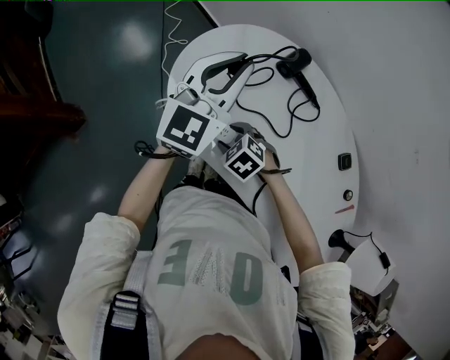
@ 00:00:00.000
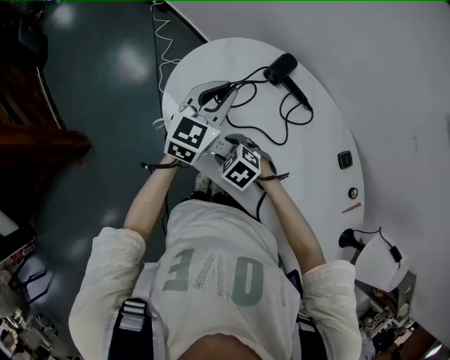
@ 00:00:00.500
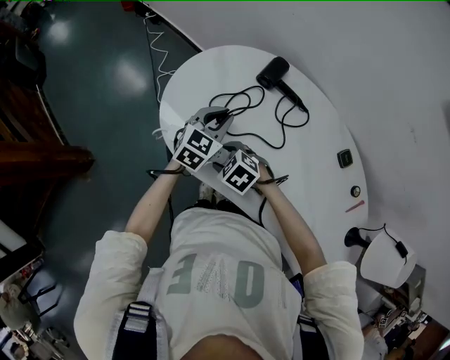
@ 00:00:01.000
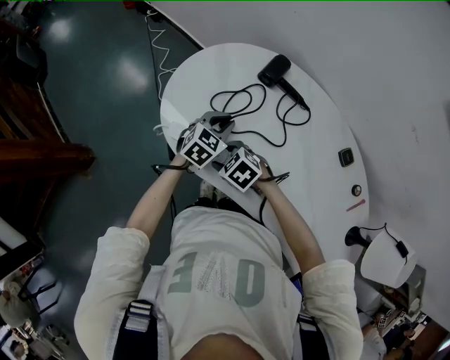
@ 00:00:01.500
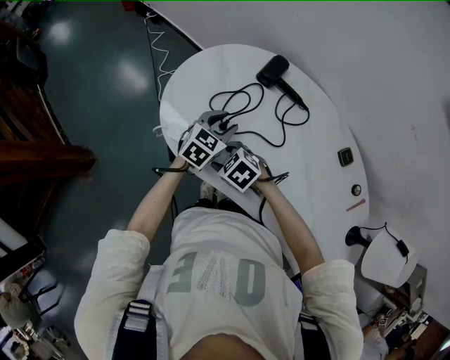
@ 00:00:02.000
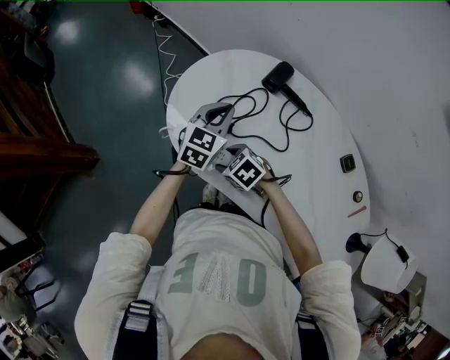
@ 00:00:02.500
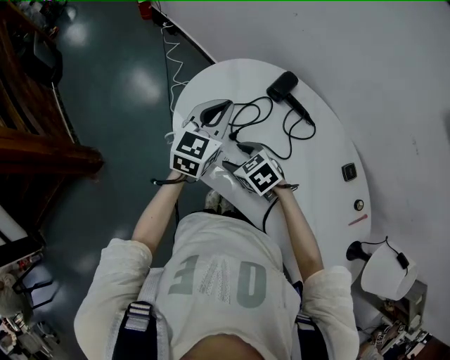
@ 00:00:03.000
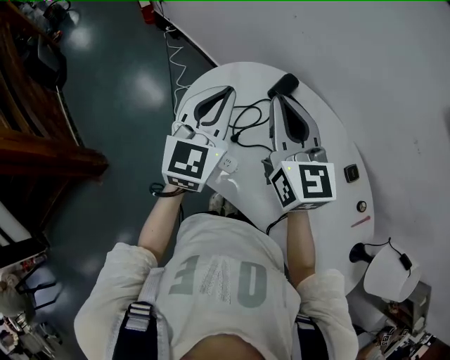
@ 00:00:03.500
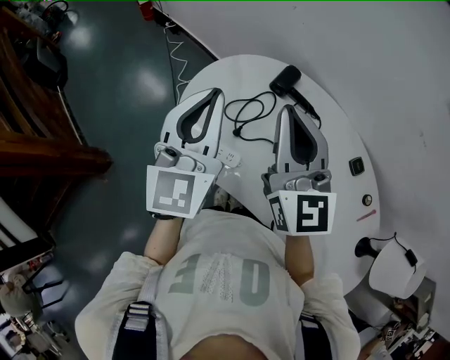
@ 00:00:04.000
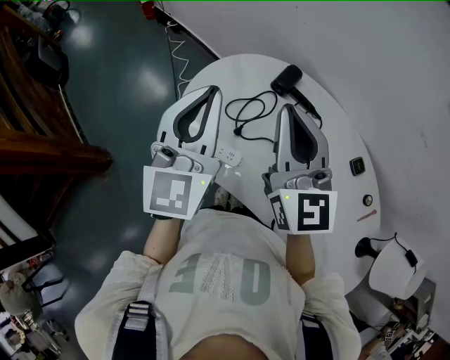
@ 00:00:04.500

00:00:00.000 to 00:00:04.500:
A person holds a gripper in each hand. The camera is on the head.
00:00:00.000 to 00:00:02.000: The left gripper moves downward, roughly 25 cm, angles its fingers downward, by about 40 degrees, and opens its fingers.
00:00:02.000 to 00:00:04.500: Both grippers travel together upward, approximately 35 cm. The left gripper tips its fingers upward by approximately 40 degrees, and closes up; the right gripper points its fingers roughly 60 degrees further upward, and closes up.

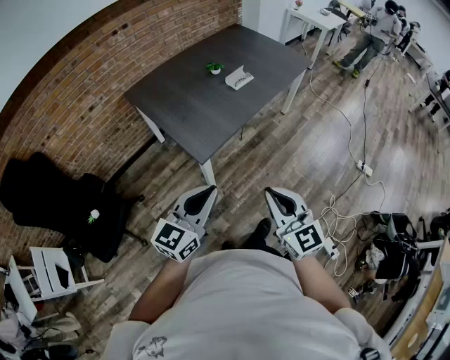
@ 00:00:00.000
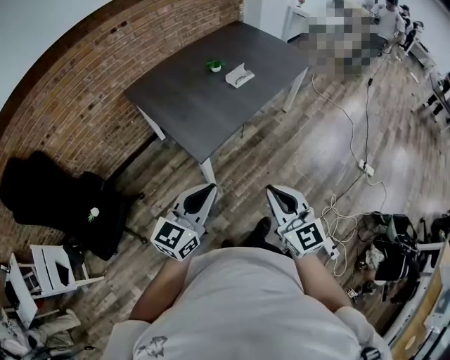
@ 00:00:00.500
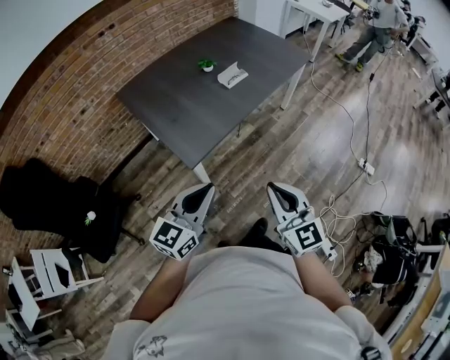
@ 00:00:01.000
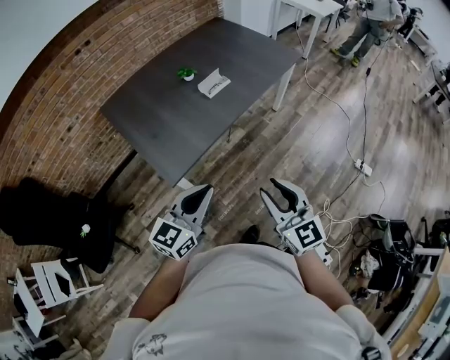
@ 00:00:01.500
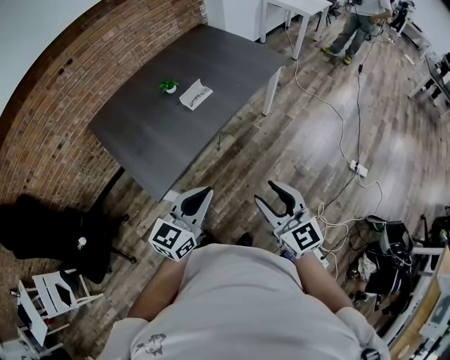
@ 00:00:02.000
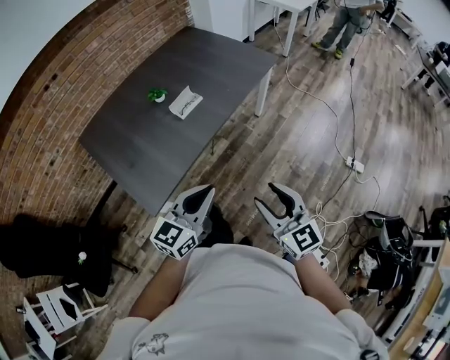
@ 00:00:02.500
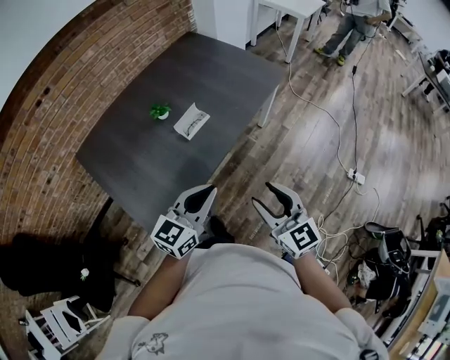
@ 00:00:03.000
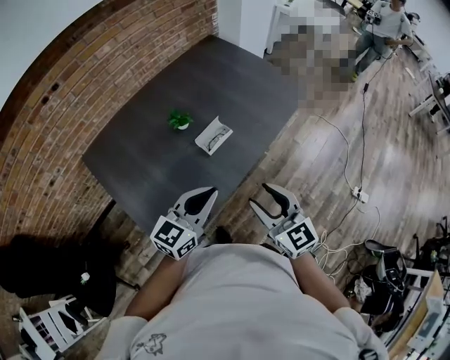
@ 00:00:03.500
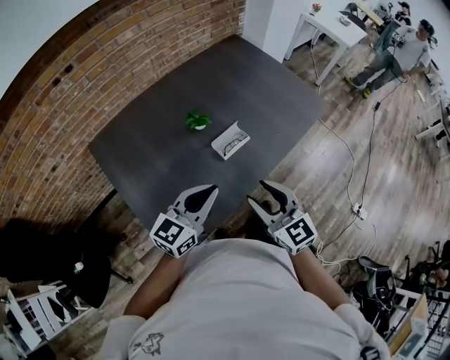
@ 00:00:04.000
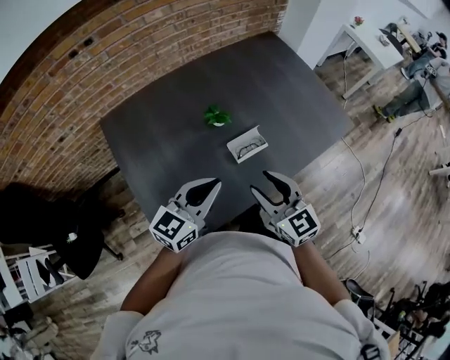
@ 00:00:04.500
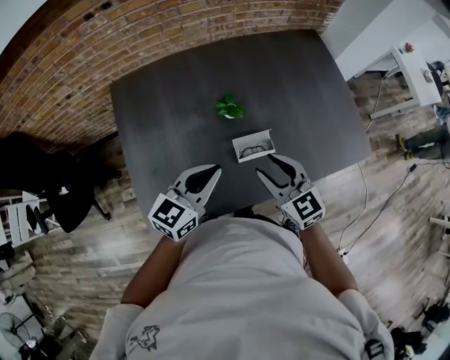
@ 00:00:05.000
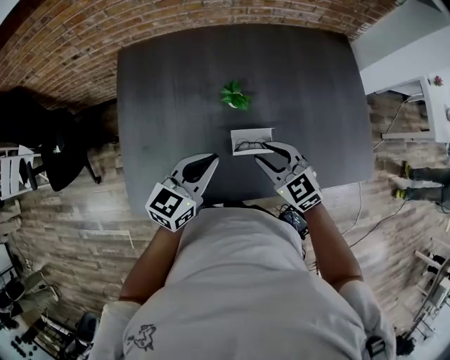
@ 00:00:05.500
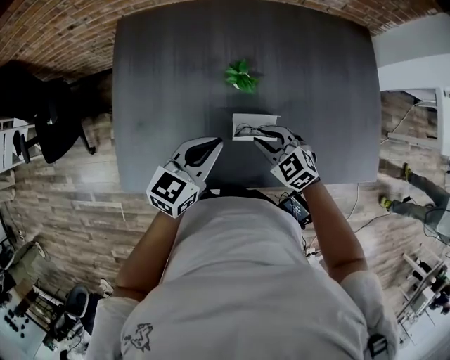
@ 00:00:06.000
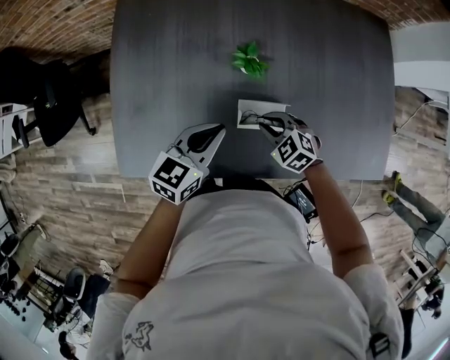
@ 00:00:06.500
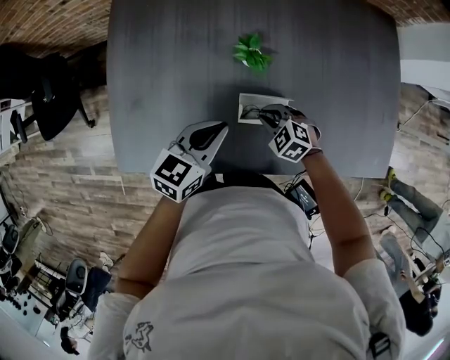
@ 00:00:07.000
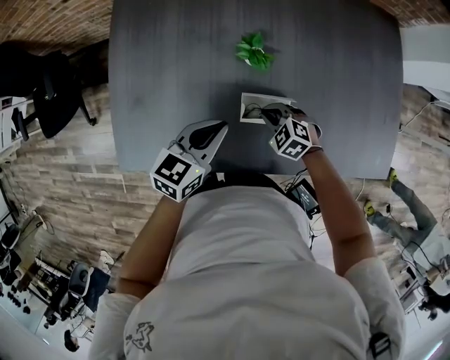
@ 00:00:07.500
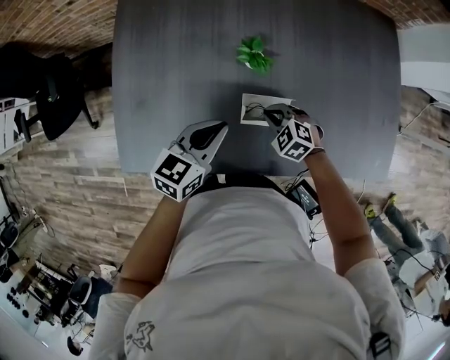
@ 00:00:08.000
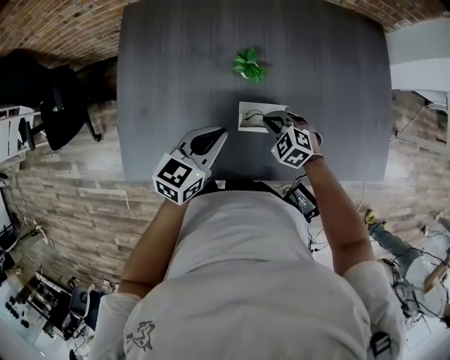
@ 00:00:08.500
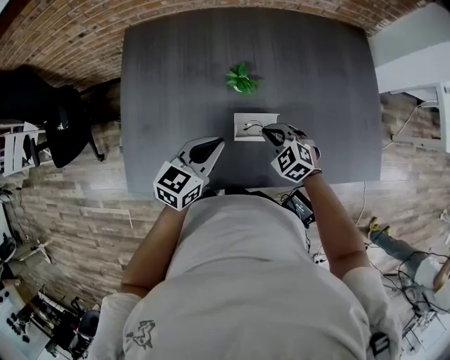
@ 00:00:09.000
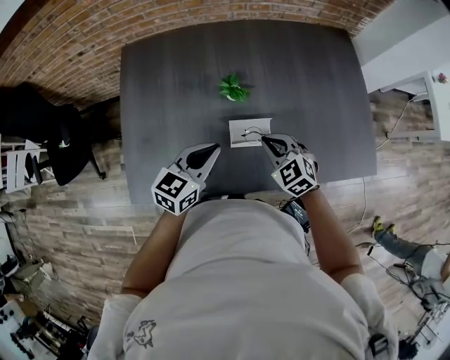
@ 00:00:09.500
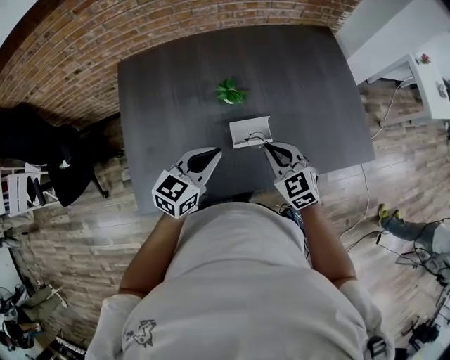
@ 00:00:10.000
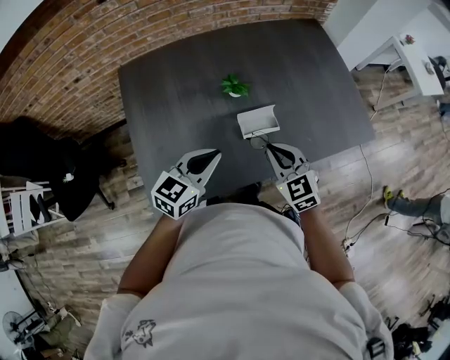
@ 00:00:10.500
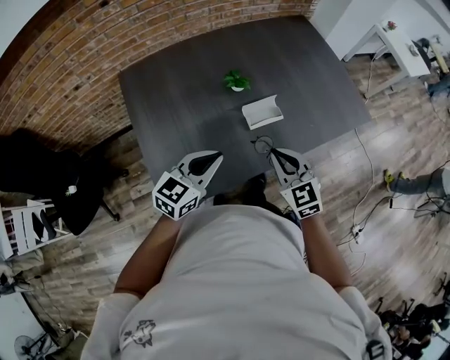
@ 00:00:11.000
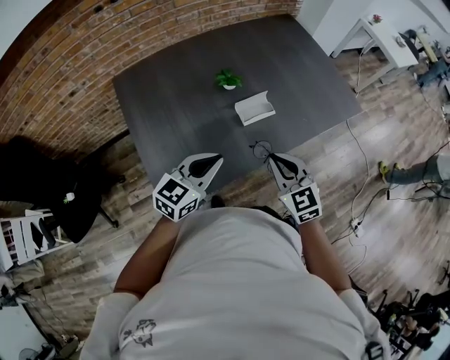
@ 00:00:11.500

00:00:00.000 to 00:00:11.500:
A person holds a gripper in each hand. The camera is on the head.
00:00:00.000 to 00:00:02.000: Both grippers travel together to the right and forward, roughly 30 cm. The right gripper opens.
00:00:02.000 to 00:00:04.000: The two grippers go approximately 35 cm forward and to the left.
00:00:04.000 to 00:00:06.000: The right gripper shifts by about 30 cm, points its fingers about 30 degrees further downward, and closes its fingers; the left gripper changes place by approximately 20 cm, and turns by approximately 40 degrees.
00:00:06.000 to 00:00:07.500: The right gripper travels downward by some 15 cm, while the left gripper goes approximately 5 cm downward.
00:00:07.500 to 00:00:09.500: The left gripper is displaced upward by some 5 cm; the right gripper travels upward by approximately 15 cm, and rotates approximately 30 degrees.
00:00:09.500 to 00:00:11.500: The right gripper shifts by some 25 cm, and changes its angle by roughly 40 degrees. The left gripper changes place by some 20 cm, and turns by approximately 30 degrees.

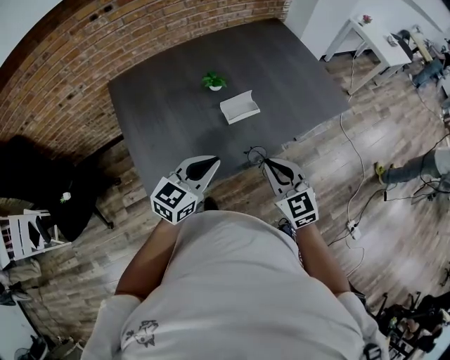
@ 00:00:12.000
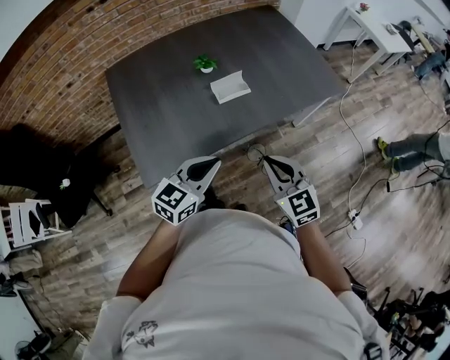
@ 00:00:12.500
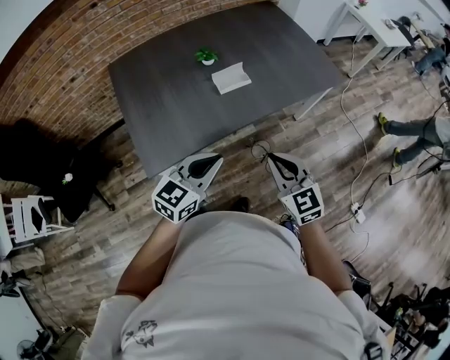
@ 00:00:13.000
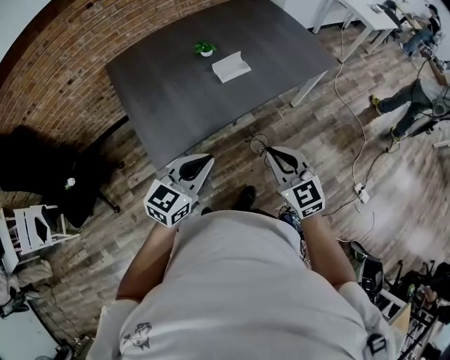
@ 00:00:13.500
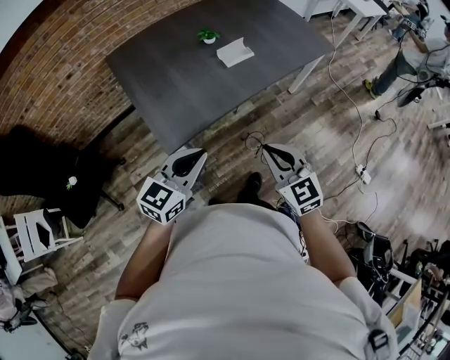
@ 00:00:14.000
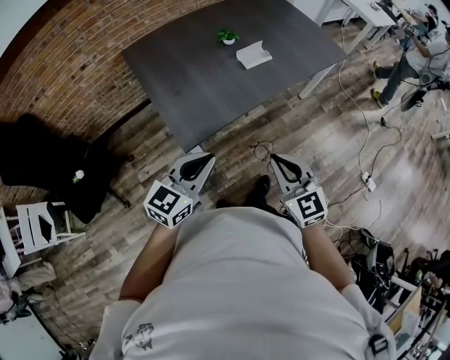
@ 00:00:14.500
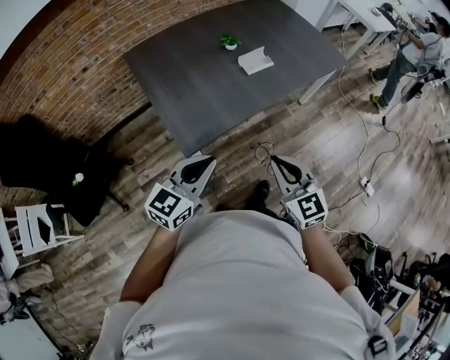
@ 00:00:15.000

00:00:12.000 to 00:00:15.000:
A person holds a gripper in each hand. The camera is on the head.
00:00:12.000 to 00:00:13.500: The two grippers go roughly 15 cm backward.
00:00:13.500 to 00:00:15.000: Both grippers travel together to the left and backward, roughly 15 cm.

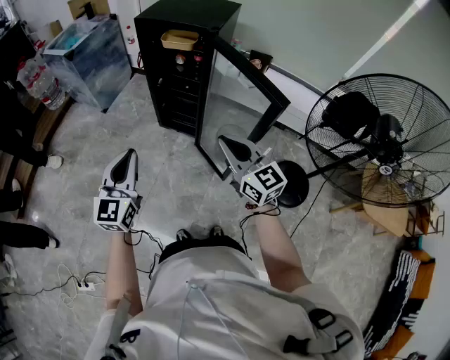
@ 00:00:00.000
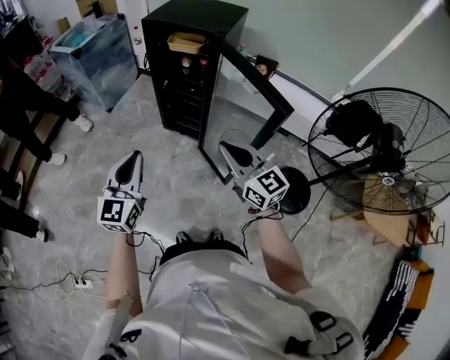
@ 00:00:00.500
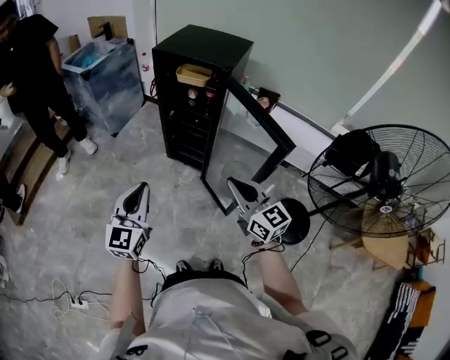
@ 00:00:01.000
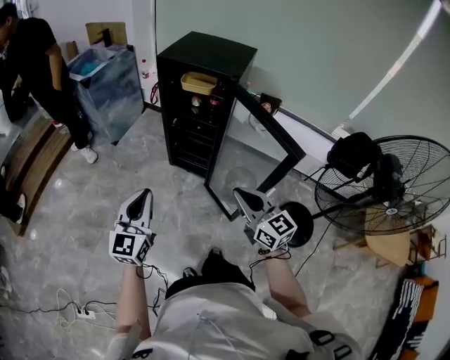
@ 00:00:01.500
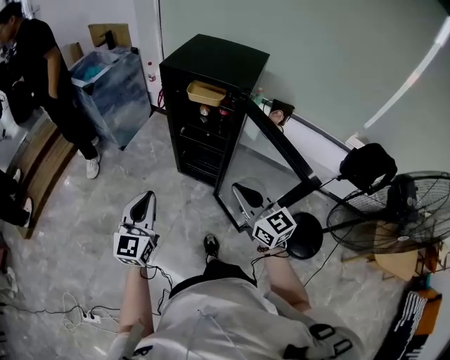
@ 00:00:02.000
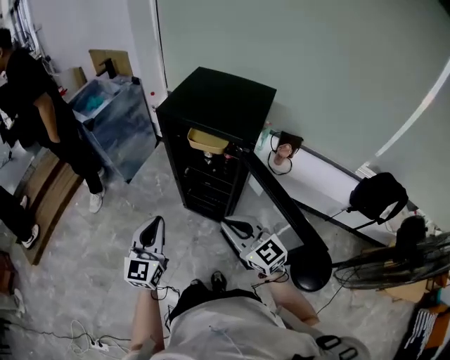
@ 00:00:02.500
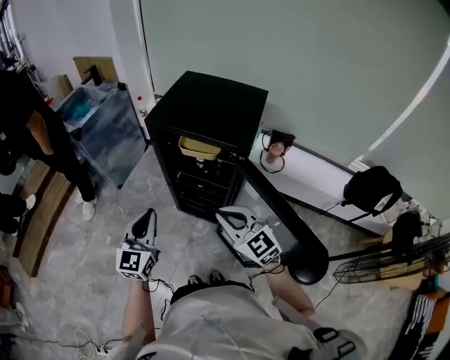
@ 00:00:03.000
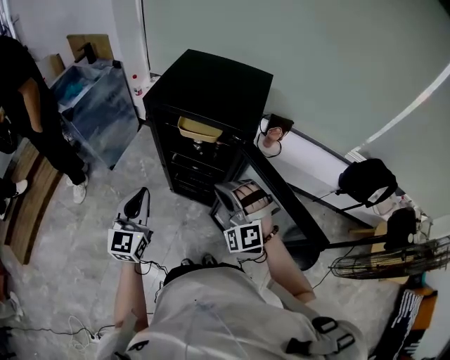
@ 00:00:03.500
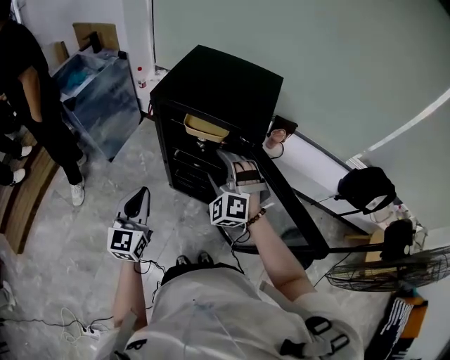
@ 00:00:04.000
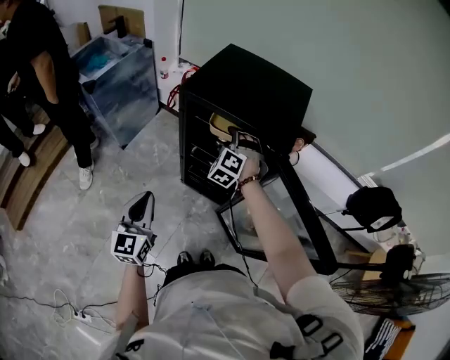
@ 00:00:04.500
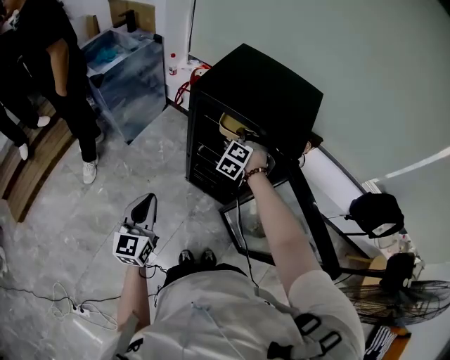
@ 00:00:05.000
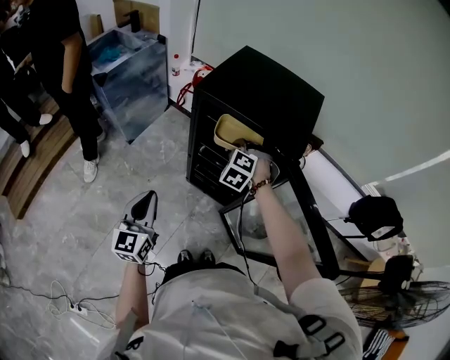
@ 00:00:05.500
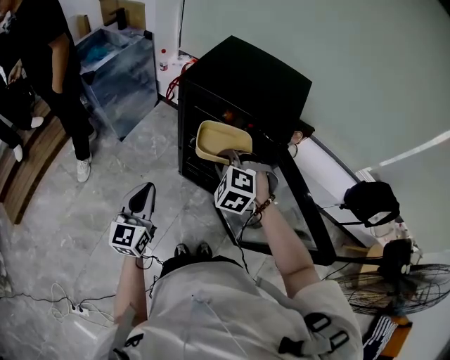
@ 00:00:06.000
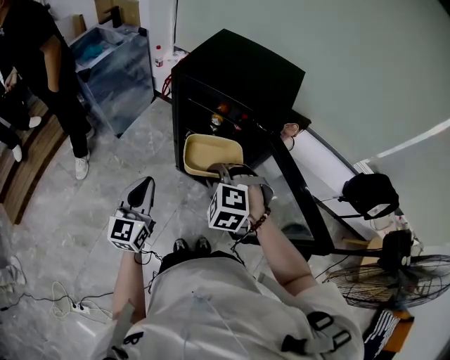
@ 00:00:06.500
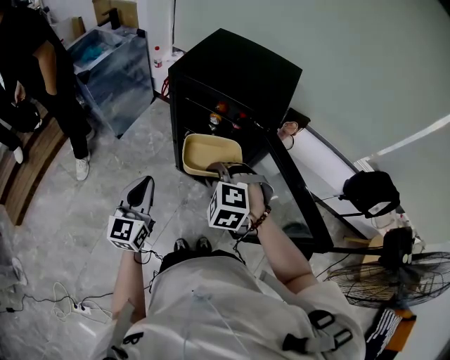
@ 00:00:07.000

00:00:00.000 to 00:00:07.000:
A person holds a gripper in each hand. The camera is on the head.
00:00:00.000 to 00:00:02.000: Both grippers travel together forward, about 15 cm.
00:00:02.000 to 00:00:03.500: Both grippers move forward, roughly 20 cm. The right gripper rotates around the line of its fingers by roughly 80 degrees, counterclockwise from behind.
00:00:03.500 to 00:00:05.000: The left gripper moves to the left and downward, roughly 10 cm, while the right gripper travels forward and downward by about 25 cm, swivels approximately 30 degrees, and opens.
00:00:05.000 to 00:00:07.000: The left gripper ends up roughly 5 cm from where it was. Meanwhile the right gripper heads backward, covering some 25 cm, changes its angle by some 20 degrees, and closes its fingers.
